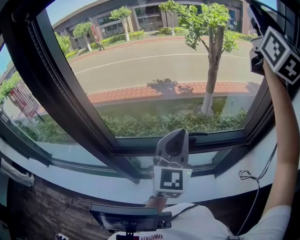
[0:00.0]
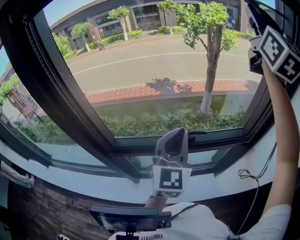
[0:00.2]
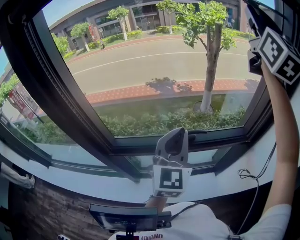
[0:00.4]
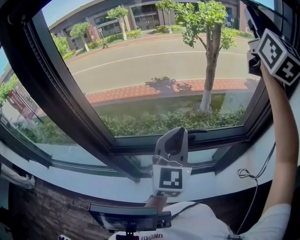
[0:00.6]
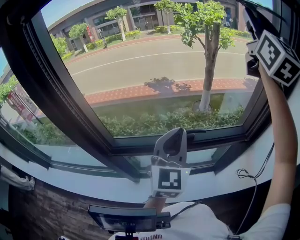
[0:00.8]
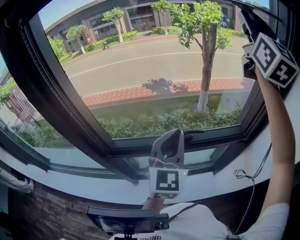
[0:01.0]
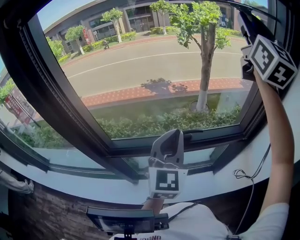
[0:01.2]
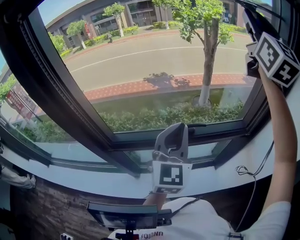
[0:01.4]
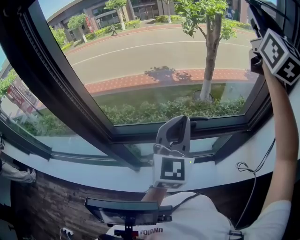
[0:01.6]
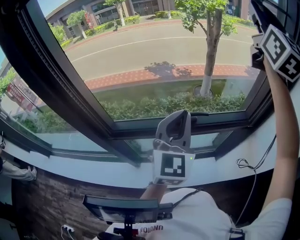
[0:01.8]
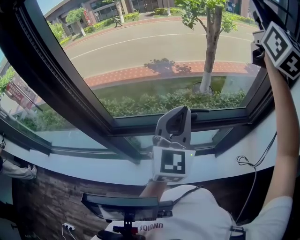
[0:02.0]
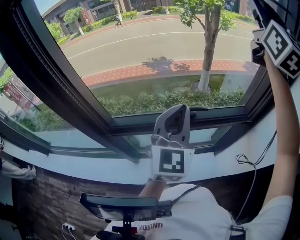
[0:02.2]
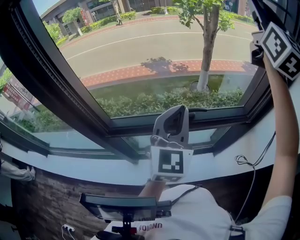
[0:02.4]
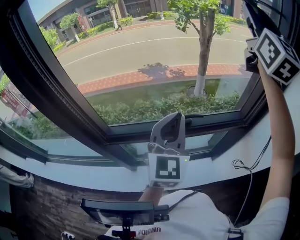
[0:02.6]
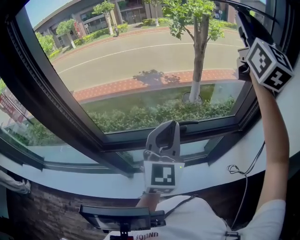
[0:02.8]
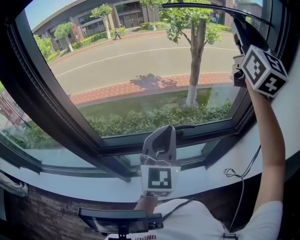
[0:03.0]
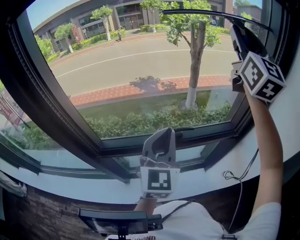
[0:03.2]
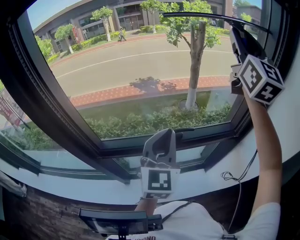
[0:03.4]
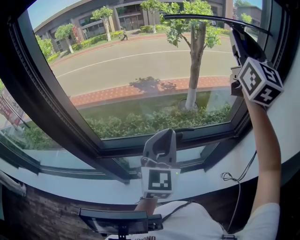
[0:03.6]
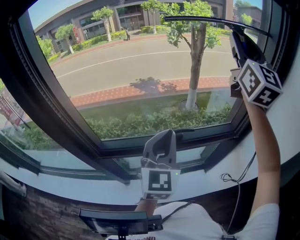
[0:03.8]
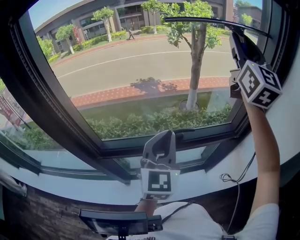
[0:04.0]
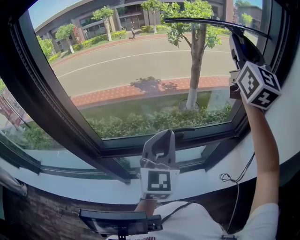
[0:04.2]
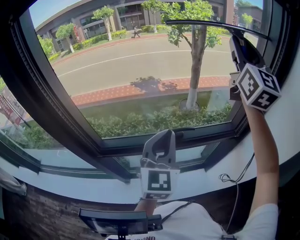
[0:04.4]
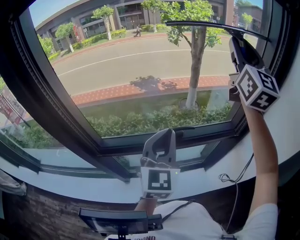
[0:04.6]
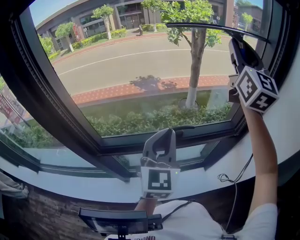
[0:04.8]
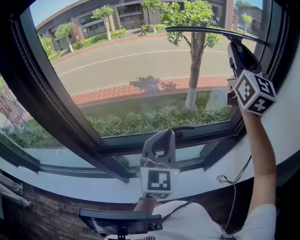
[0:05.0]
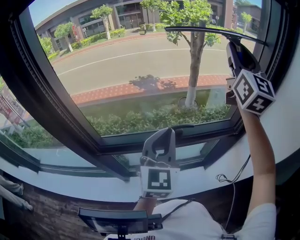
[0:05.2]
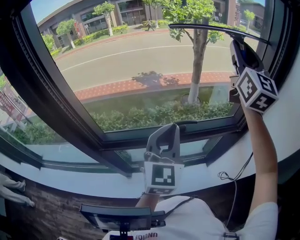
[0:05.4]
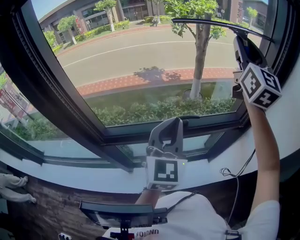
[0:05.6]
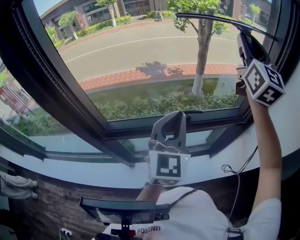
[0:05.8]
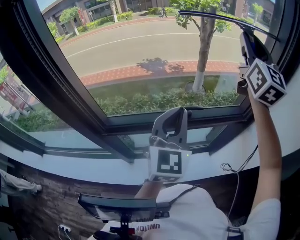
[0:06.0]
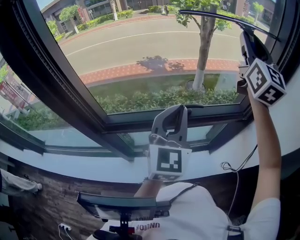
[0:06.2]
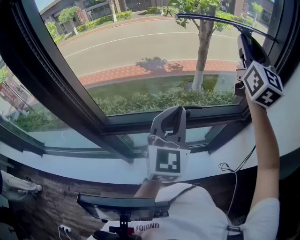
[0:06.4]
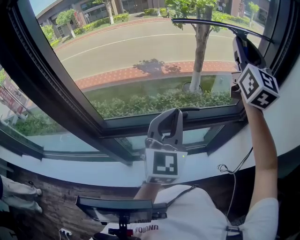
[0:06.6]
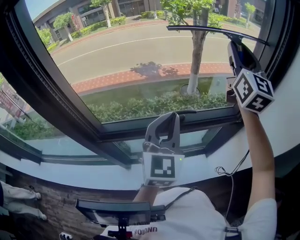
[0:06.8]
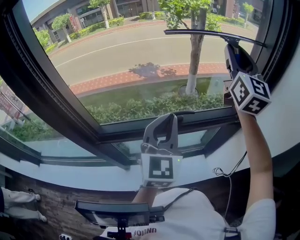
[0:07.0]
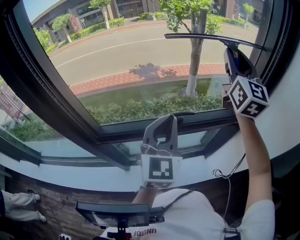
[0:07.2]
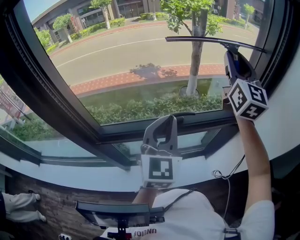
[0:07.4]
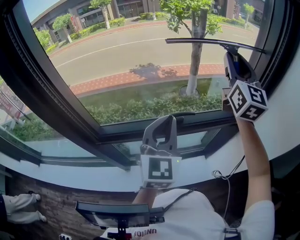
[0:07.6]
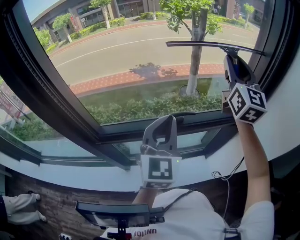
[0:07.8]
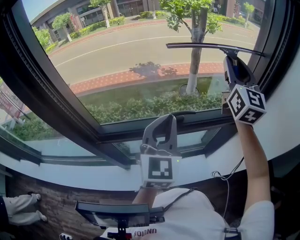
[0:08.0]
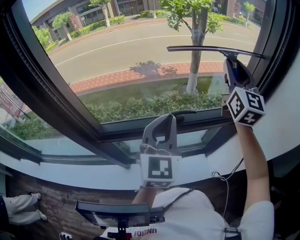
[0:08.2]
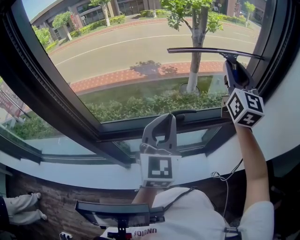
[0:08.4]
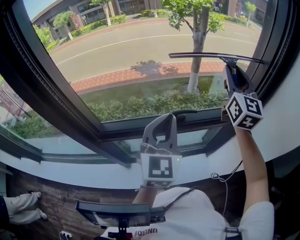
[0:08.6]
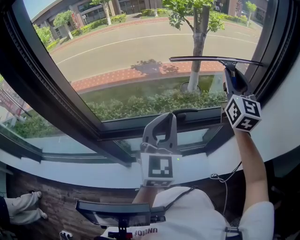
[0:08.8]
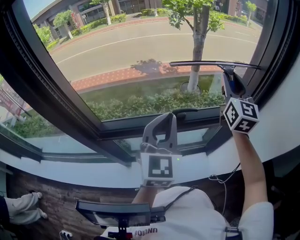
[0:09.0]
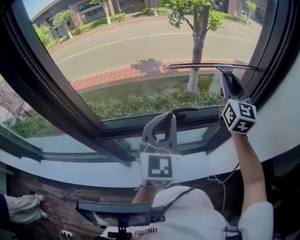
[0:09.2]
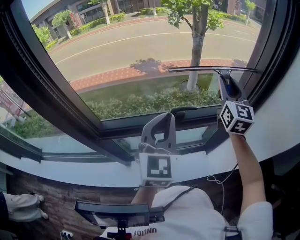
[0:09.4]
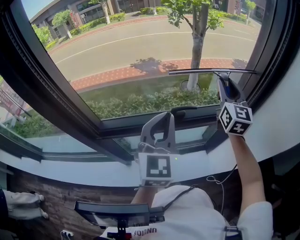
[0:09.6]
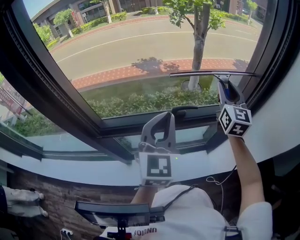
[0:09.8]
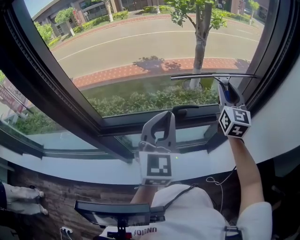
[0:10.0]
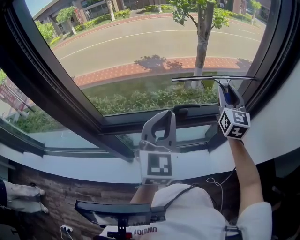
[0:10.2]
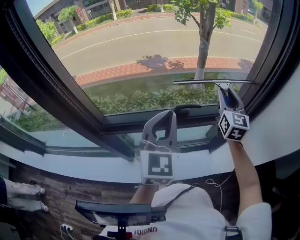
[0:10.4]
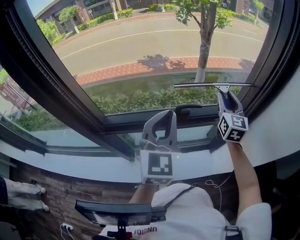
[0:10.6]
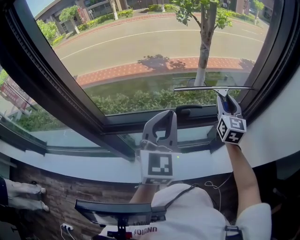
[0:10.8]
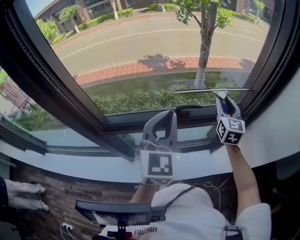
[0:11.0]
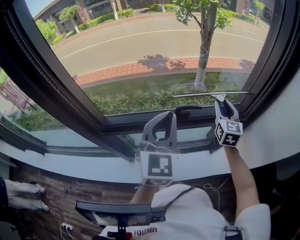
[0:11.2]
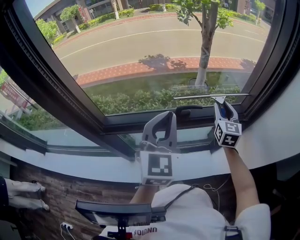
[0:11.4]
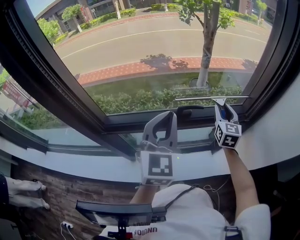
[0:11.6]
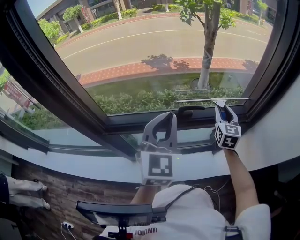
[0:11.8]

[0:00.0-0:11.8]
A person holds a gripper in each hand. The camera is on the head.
0:00.0 to 0:01.4: The grippers move only a little.
0:01.4 to 0:03.0: There are only small adjustments of the grippers.
0:03.0 to 0:06.0: There are only small adjustments of the grippers.
0:06.0 to 0:07.4: The right gripper heads downward, covering about 5 cm.
0:07.4 to 0:08.8: The right gripper heads downward, covering about 10 cm.
0:08.8 to 0:10.4: The right gripper is displaced downward by about 10 cm.
0:10.4 to 0:11.8: The right gripper shifts about 10 cm downward.

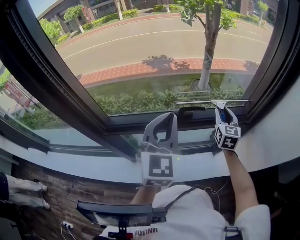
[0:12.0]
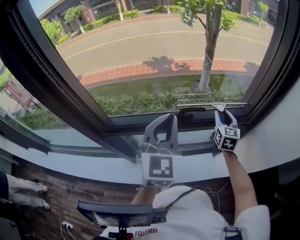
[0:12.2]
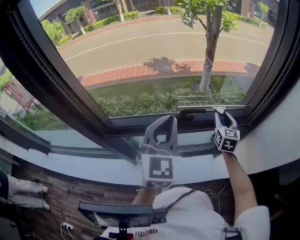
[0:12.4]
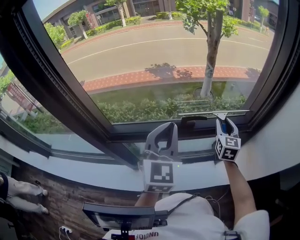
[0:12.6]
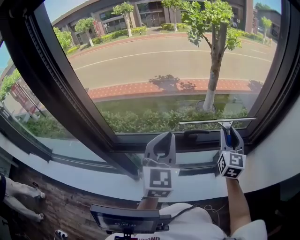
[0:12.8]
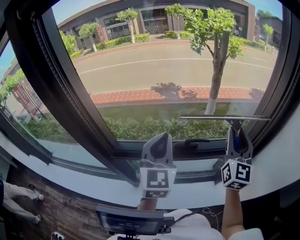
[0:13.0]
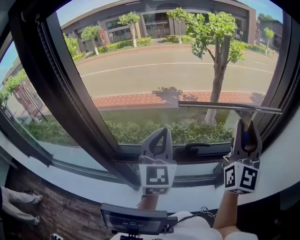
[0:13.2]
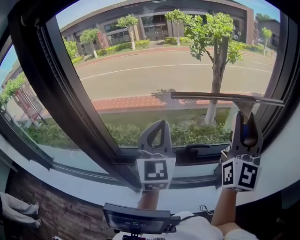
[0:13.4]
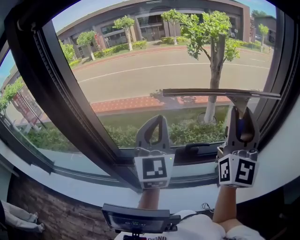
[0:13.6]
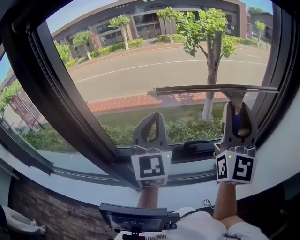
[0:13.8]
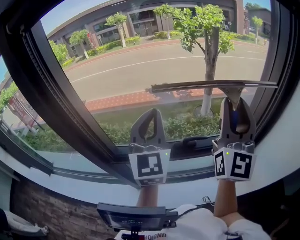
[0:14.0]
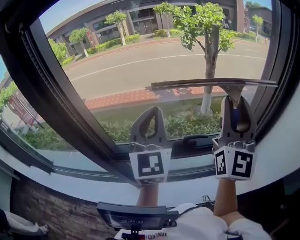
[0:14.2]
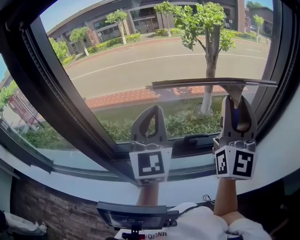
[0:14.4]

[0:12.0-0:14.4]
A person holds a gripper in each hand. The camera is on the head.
0:12.0 to 0:13.2: The left gripper moves to the left, about 5 cm, while the right gripper moves upward, some 25 cm, and tilts its fingers roughly 40 degrees upward.
0:13.2 to 0:14.4: The left gripper travels upward by approximately 5 cm. The right gripper shifts by some 5 cm.

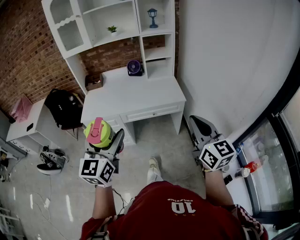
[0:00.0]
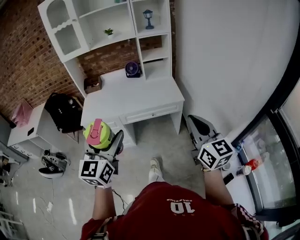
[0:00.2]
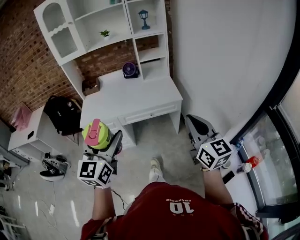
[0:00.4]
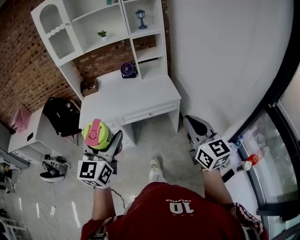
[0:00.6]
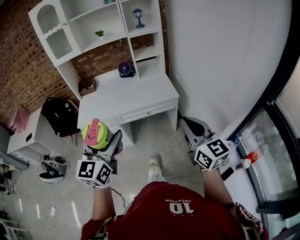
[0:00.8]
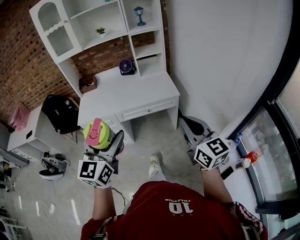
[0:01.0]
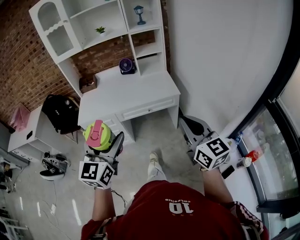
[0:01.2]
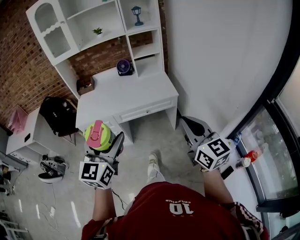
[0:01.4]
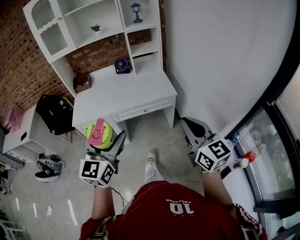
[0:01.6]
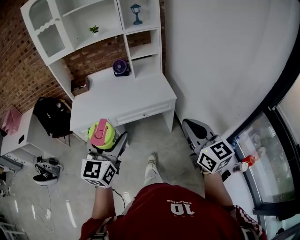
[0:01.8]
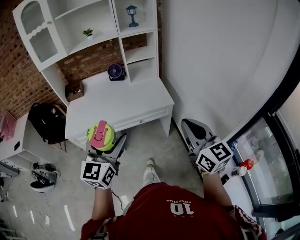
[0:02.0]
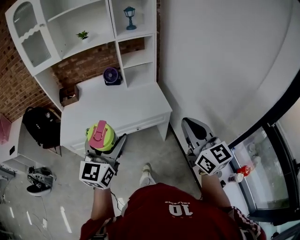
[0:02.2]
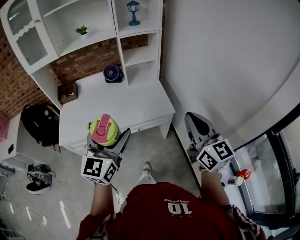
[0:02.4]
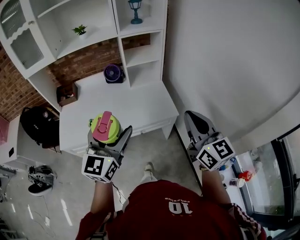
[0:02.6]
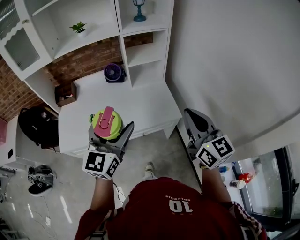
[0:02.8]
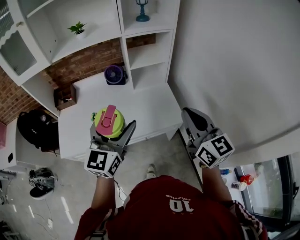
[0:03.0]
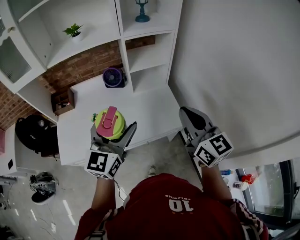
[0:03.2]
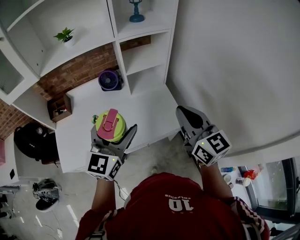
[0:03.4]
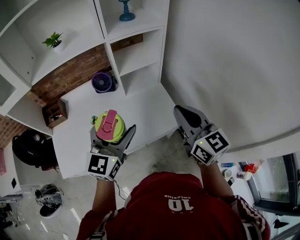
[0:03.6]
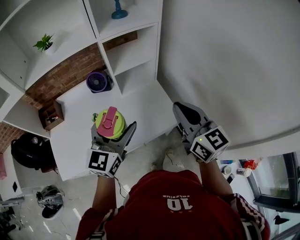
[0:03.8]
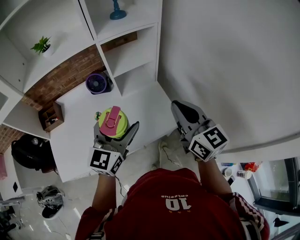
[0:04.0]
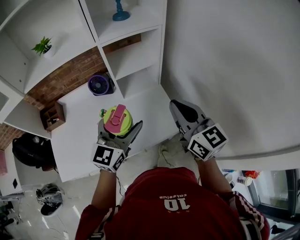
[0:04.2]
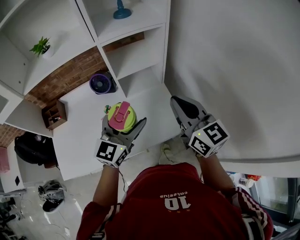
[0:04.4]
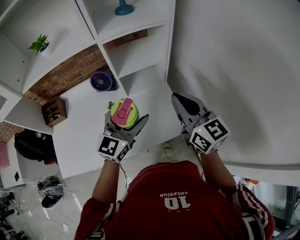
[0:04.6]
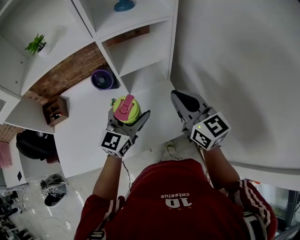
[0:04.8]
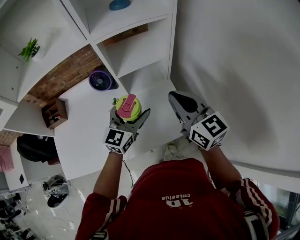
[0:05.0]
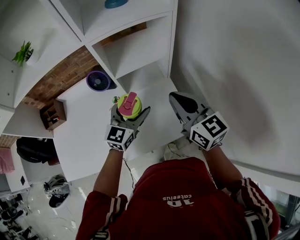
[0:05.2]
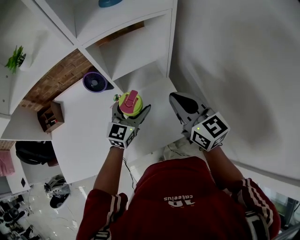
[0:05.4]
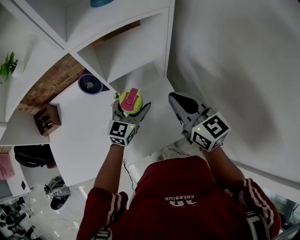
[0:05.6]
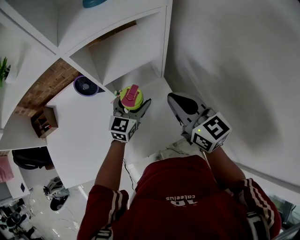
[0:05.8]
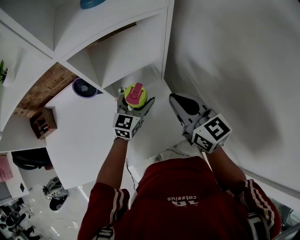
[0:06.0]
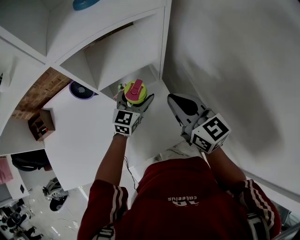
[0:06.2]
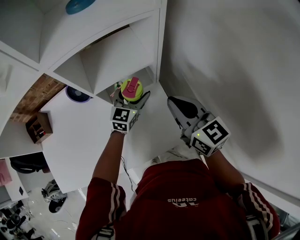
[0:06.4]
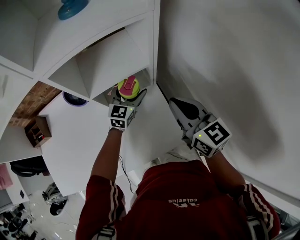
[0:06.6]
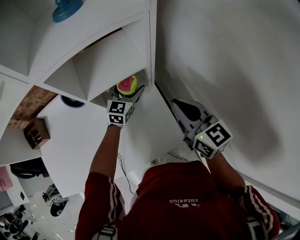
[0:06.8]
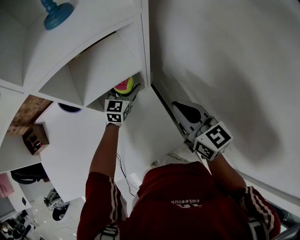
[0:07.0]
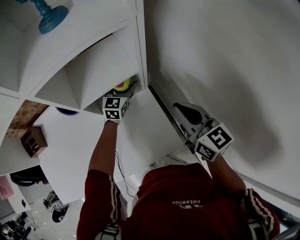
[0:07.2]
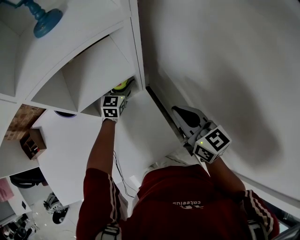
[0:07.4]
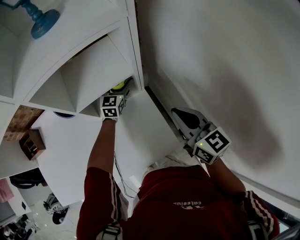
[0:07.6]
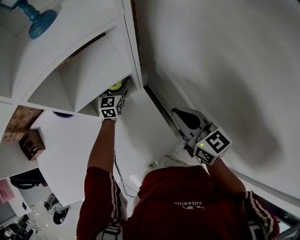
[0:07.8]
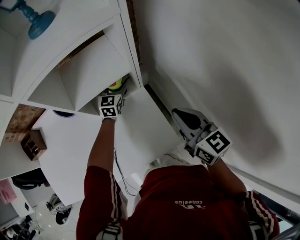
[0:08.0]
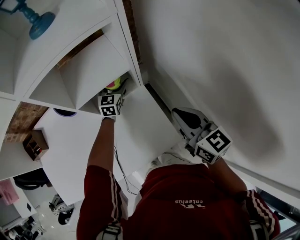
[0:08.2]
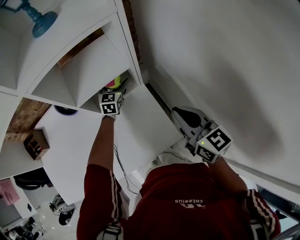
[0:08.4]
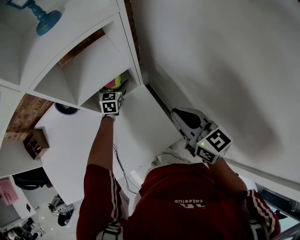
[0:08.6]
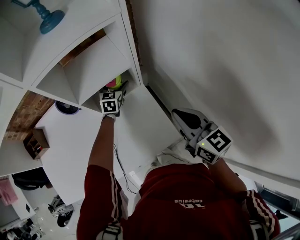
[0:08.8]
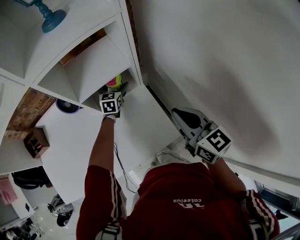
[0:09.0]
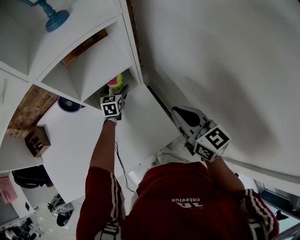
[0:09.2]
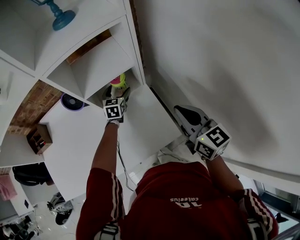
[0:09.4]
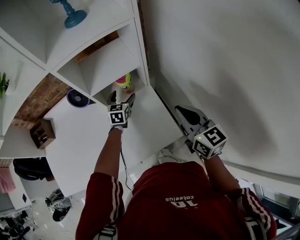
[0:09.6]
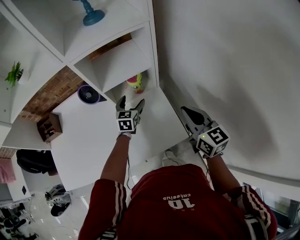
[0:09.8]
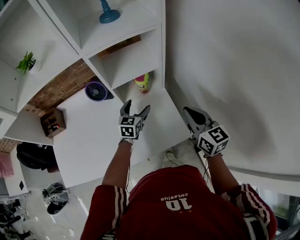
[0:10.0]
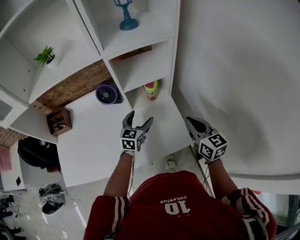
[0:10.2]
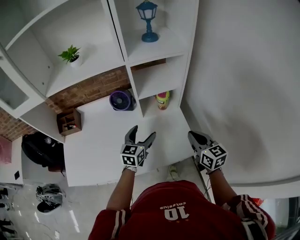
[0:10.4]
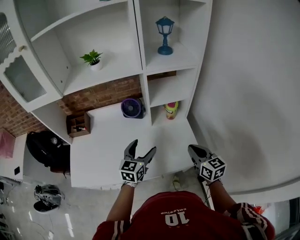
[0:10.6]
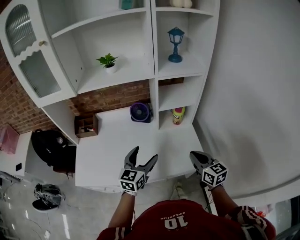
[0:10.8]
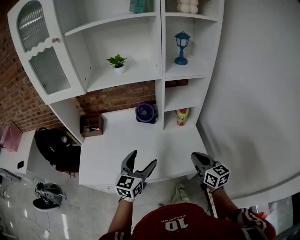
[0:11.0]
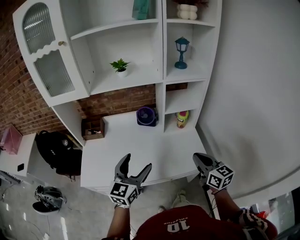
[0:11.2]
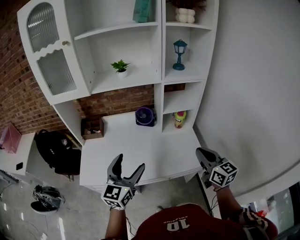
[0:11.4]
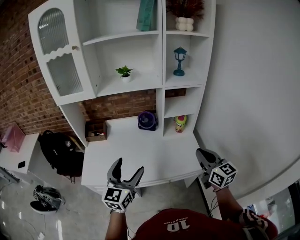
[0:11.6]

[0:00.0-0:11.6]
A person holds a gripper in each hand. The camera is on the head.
0:00.0 to 0:01.4: There are only small adjustments of the grippers.
0:01.4 to 0:02.8: The grippers both shift forward by about 35 cm.
0:02.8 to 0:04.4: Both grippers move forward, approximately 25 cm.
0:04.4 to 0:05.8: The left gripper heads downward and forward, covering some 25 cm; the right gripper goes about 15 cm forward and downward.
0:05.8 to 0:07.2: The left gripper travels forward by roughly 15 cm, while the right gripper heads to the right, covering about 10 cm.
0:07.2 to 0:08.8: The right gripper goes some 5 cm backward.
0:08.8 to 0:10.2: The left gripper shifts some 25 cm backward and upward; the right gripper shifts by some 5 cm.
0:10.2 to 0:11.6: The left gripper travels backward, to the left and upward by about 50 cm, and changes its angle by some 30 degrees. The right gripper heads backward, upward and to the left, covering some 25 cm.
